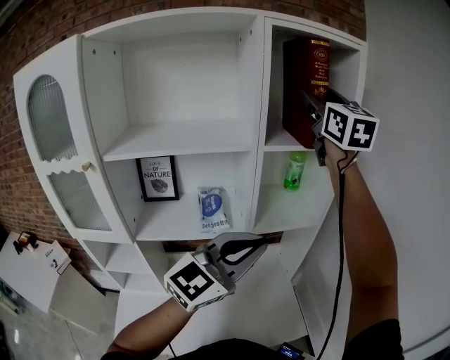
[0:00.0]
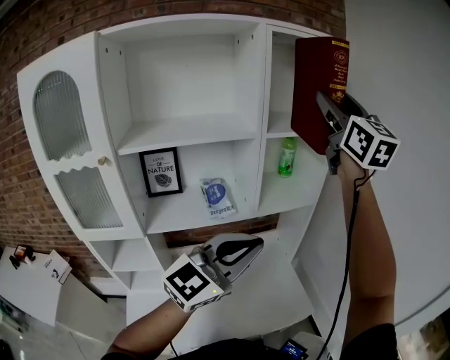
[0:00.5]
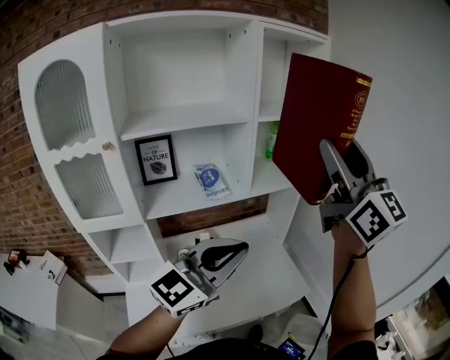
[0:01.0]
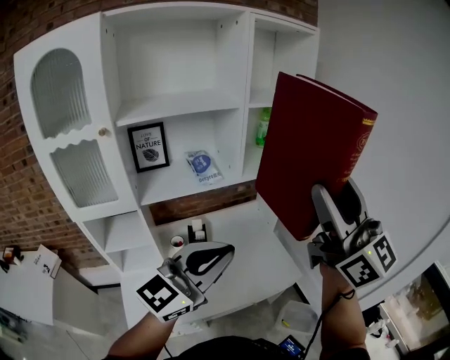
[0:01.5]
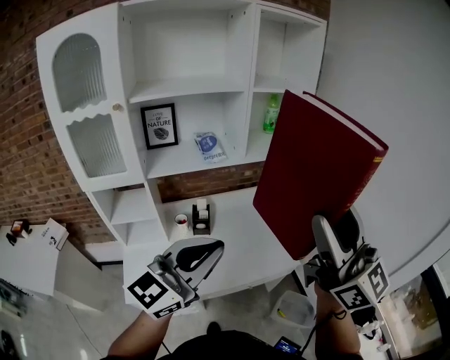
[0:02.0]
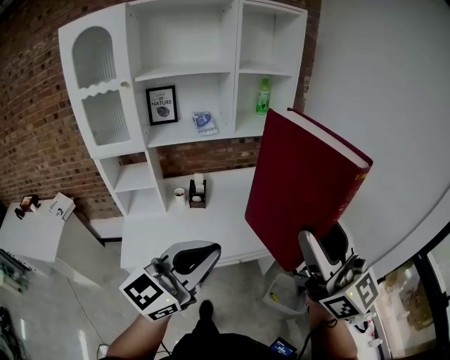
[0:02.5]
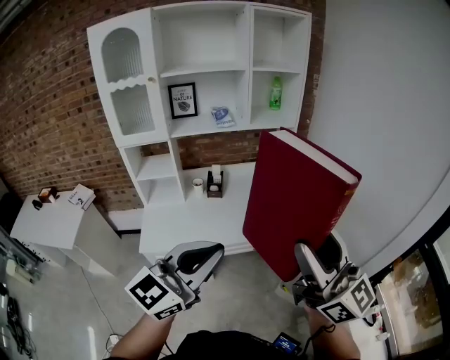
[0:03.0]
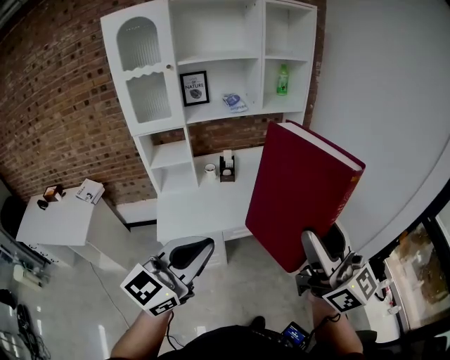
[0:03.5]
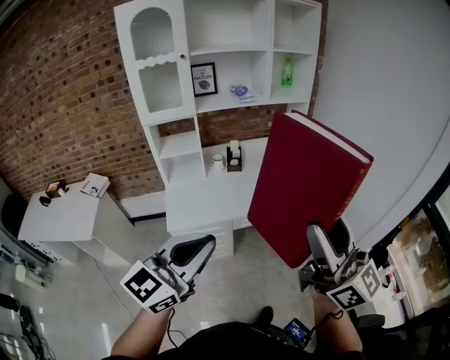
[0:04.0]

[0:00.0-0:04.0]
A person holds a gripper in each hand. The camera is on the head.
0:00.0 to 0:02.0: The right gripper moves backward, approximately 50 cm, and changes its angle by about 20 degrees. The left gripper moves backward, approximately 30 cm.
0:02.0 to 0:04.0: Both grippers travel together backward, about 40 cm.

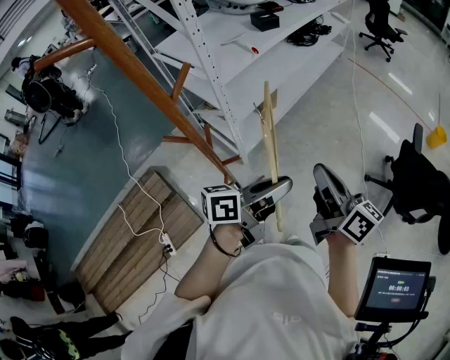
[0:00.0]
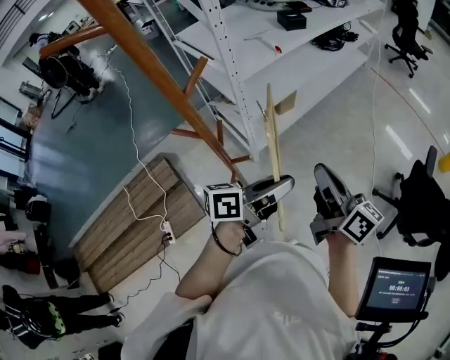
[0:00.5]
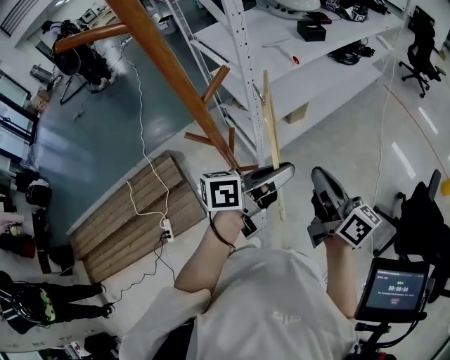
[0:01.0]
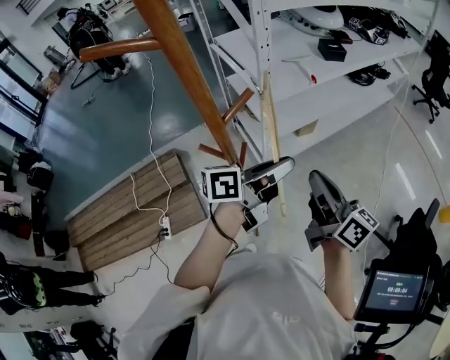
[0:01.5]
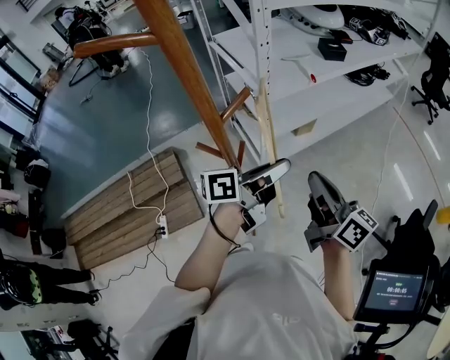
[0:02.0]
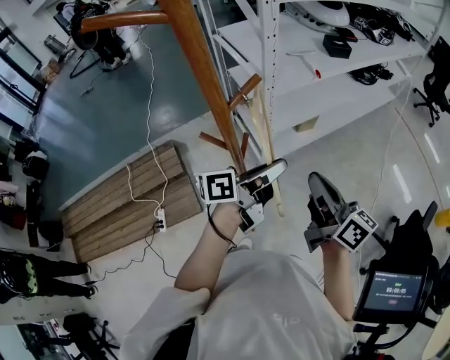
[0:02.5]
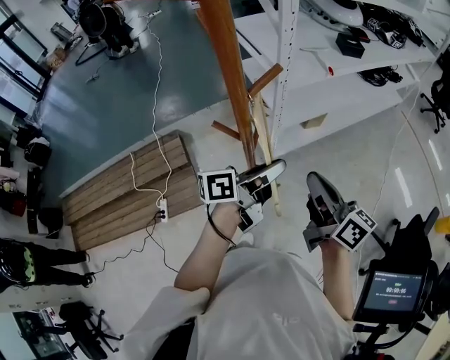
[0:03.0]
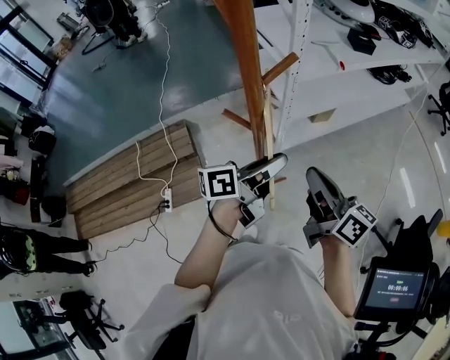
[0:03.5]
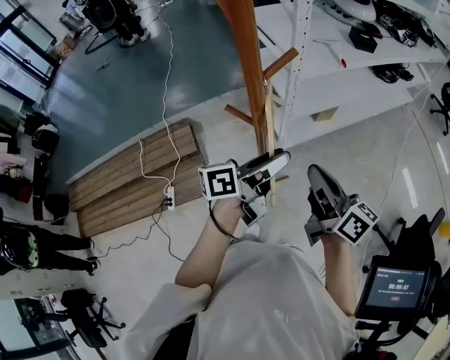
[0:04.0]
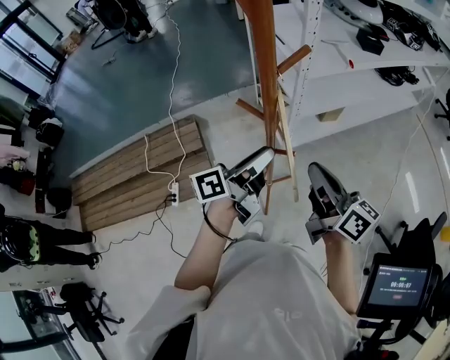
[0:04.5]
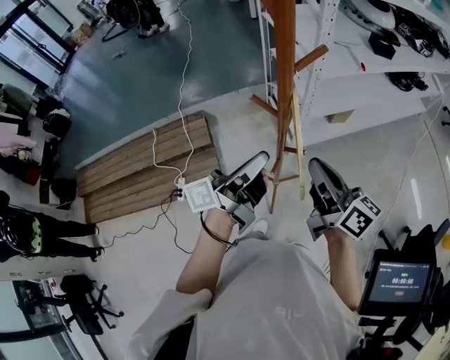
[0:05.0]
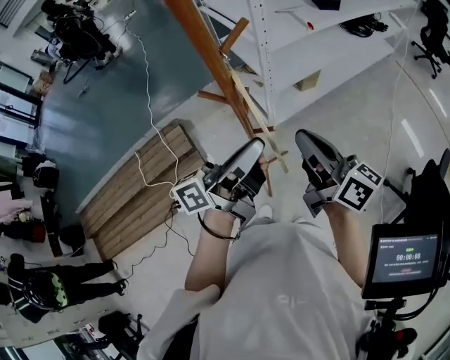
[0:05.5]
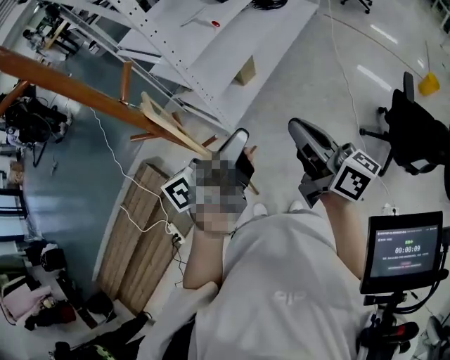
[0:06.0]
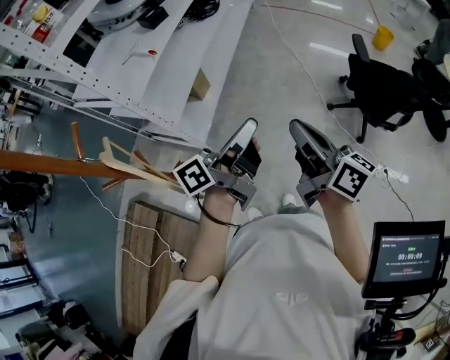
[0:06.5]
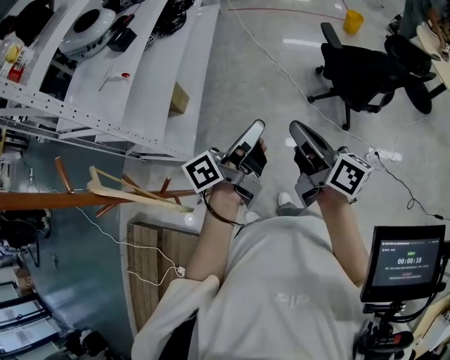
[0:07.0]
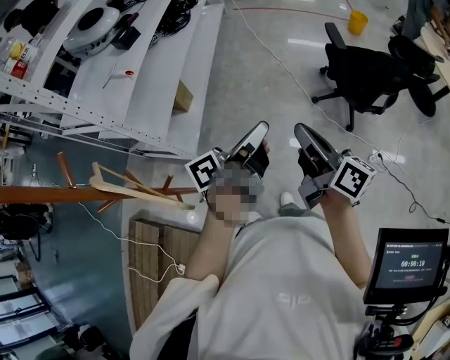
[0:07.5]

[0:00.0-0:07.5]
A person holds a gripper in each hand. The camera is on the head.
0:00.0 to 0:02.0: The right gripper heads to the left and forward, covering approximately 15 cm; the left gripper shifts about 15 cm forward and to the left, and swivels about 20 degrees.
0:02.0 to 0:04.0: The two grippers go some 10 cm to the left and backward. The left gripper opens its fingers.
0:04.0 to 0:05.5: The right gripper is displaced upward by roughly 5 cm. The left gripper heads upward and backward, covering about 15 cm, and closes.
0:05.5 to 0:07.5: The left gripper ends up approximately 35 cm from where it was, and turns by some 50 degrees. The right gripper shifts by roughly 30 cm, and rotates about 50 degrees.

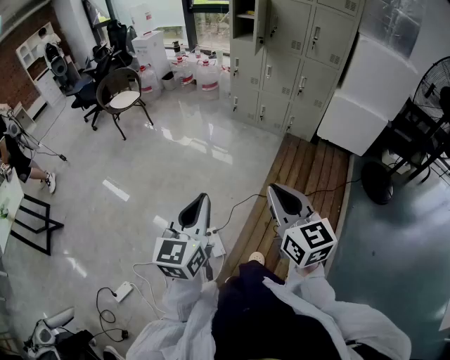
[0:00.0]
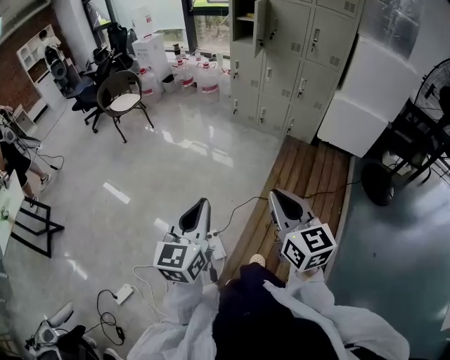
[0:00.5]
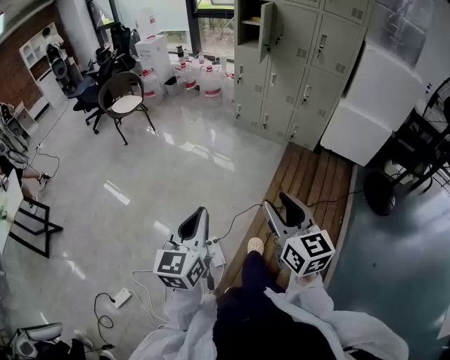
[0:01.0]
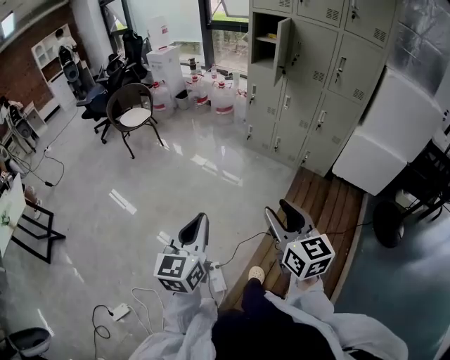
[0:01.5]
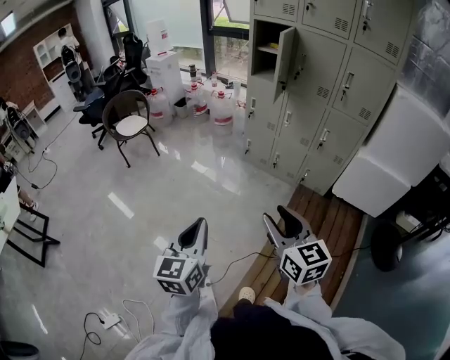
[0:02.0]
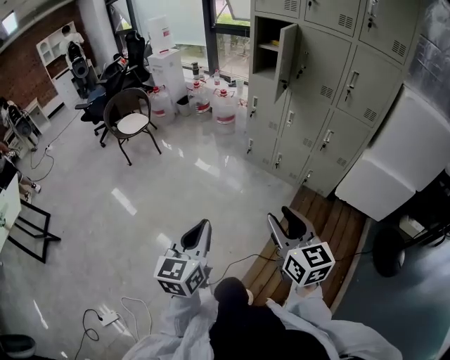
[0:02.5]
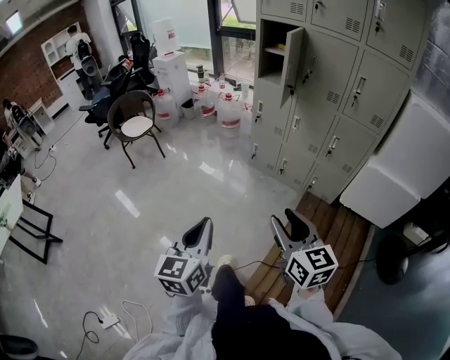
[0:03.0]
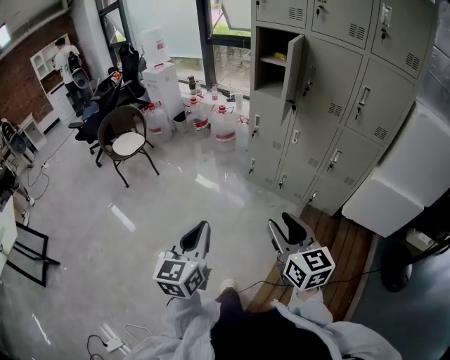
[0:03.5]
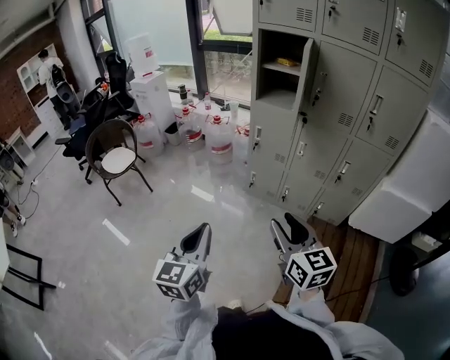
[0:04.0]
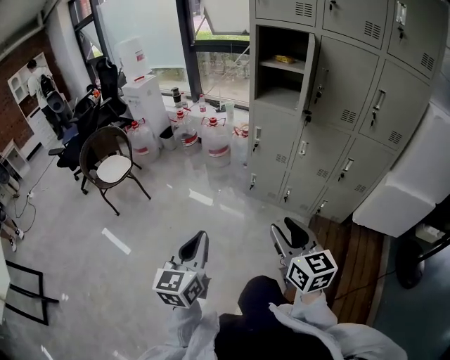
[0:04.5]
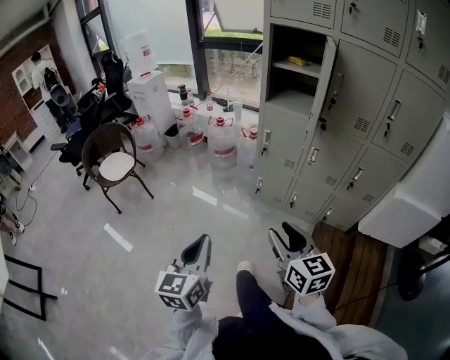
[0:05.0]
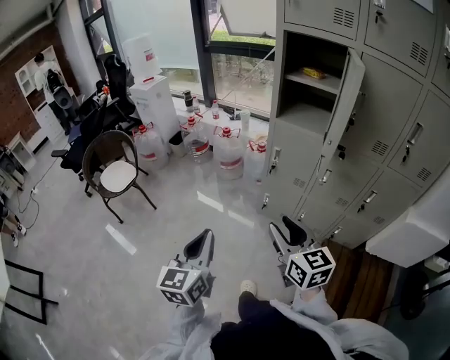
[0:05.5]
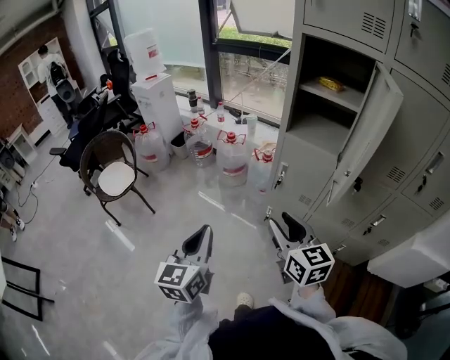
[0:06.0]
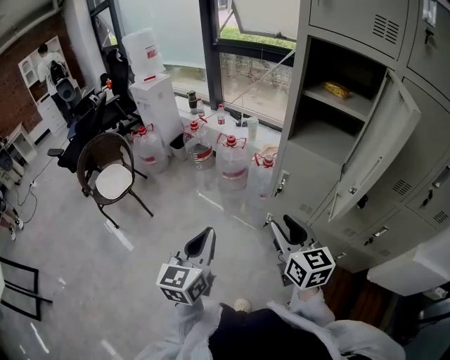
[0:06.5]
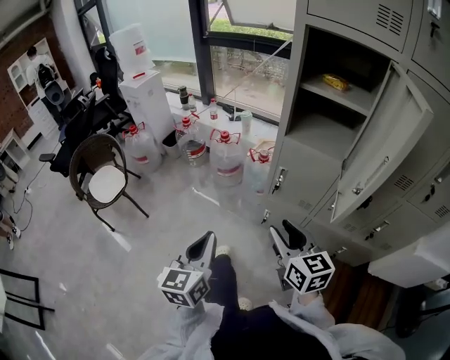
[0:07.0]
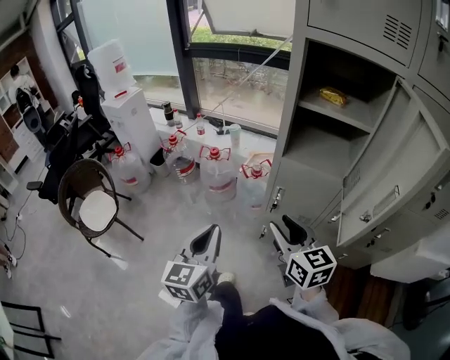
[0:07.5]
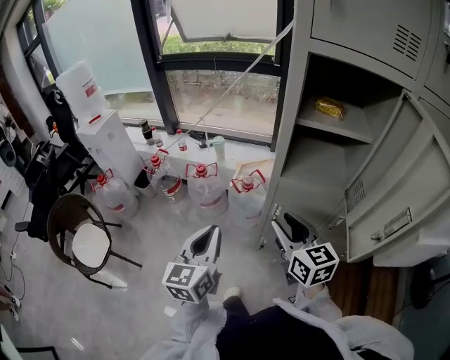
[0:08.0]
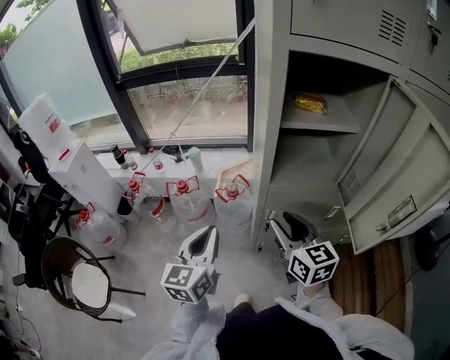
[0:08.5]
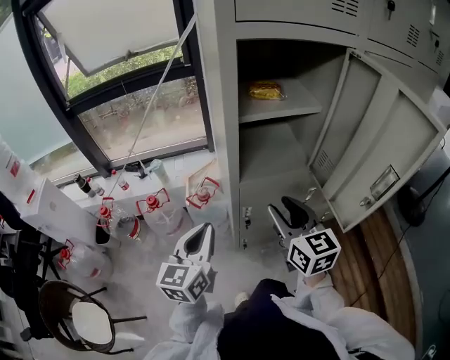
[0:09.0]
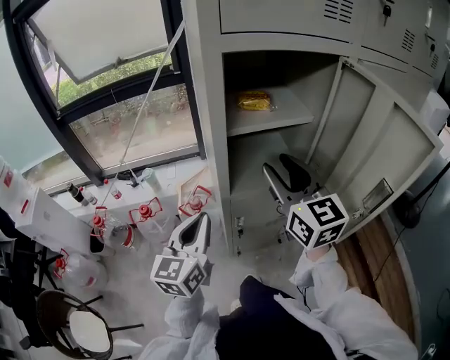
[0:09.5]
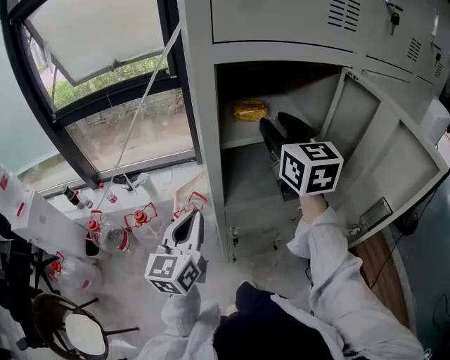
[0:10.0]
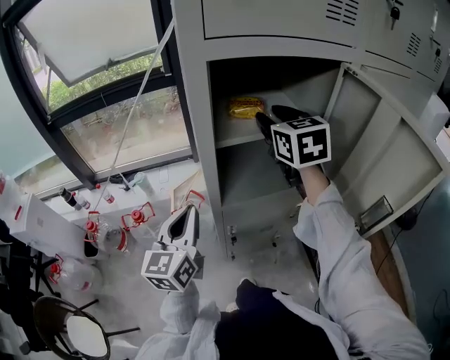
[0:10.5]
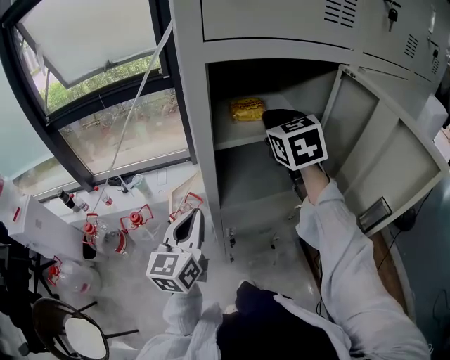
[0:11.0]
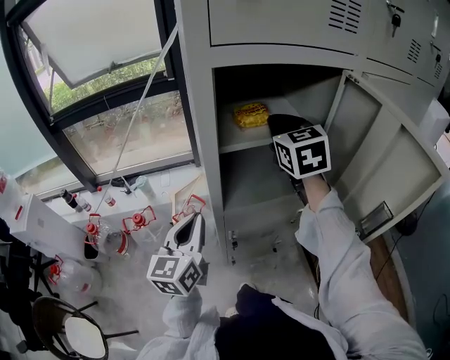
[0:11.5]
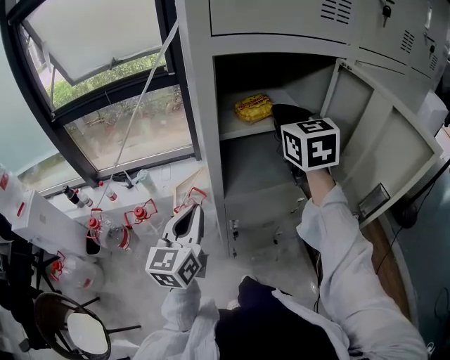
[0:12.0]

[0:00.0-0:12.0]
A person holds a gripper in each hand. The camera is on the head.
0:00.0 to 0:02.0: Both grippers travel together forward, roughly 30 cm. The right gripper opens.
0:02.0 to 0:04.0: The two grippers go about 30 cm forward.
0:04.0 to 0:06.0: Both grippers travel together forward, some 35 cm.
0:06.0 to 0:08.0: The two grippers go some 25 cm forward.
0:08.0 to 0:10.0: The left gripper shifts by approximately 20 cm, and swivels roughly 30 degrees, while the right gripper changes place by about 35 cm, and turns by about 40 degrees.
0:10.0 to 0:12.0: The right gripper closes up.

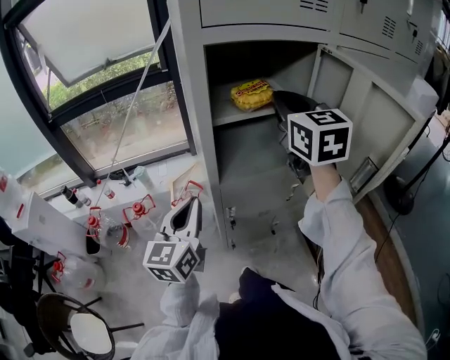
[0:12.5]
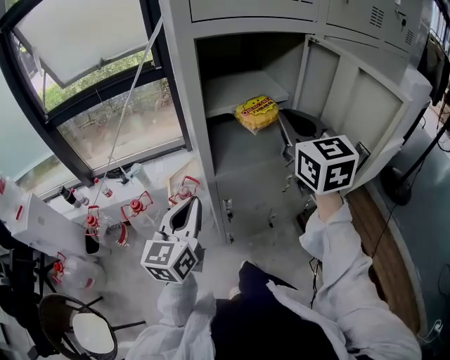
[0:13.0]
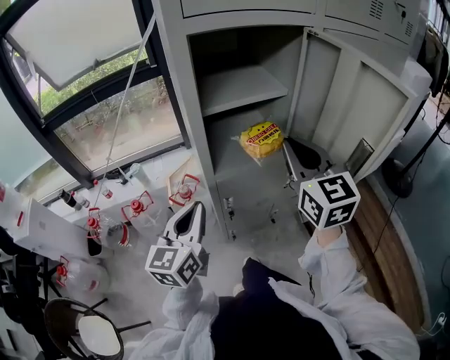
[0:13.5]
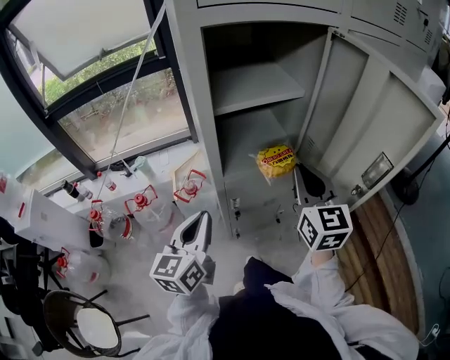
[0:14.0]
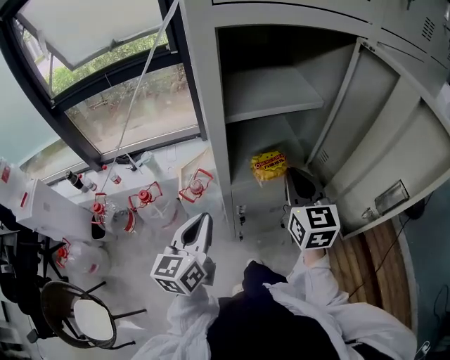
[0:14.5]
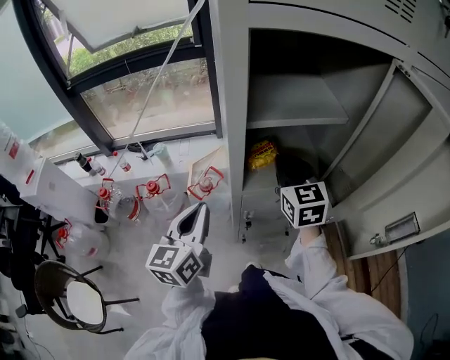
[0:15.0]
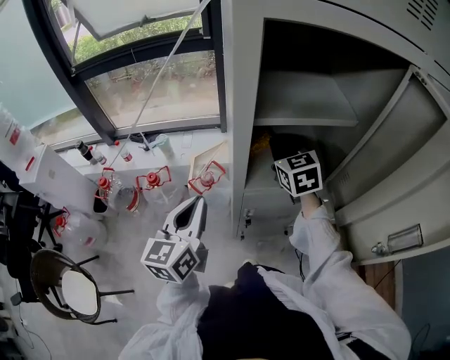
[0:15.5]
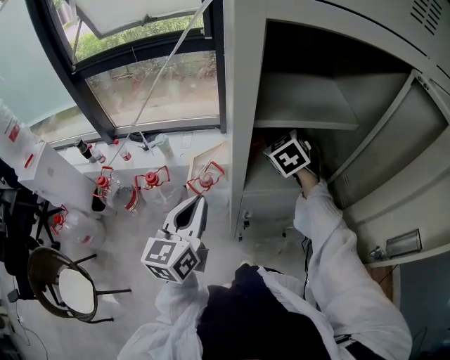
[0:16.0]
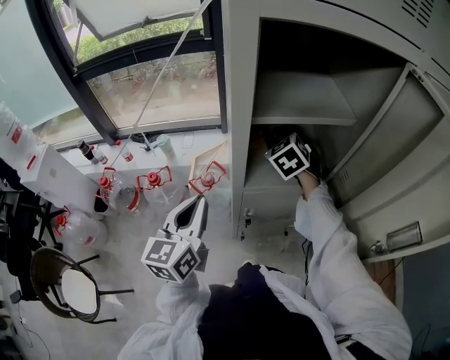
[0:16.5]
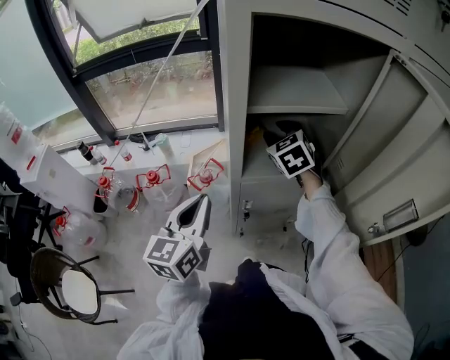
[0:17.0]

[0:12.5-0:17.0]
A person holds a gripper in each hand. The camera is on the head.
0:12.5 to 0:14.5: The left gripper travels downward by roughly 5 cm. The right gripper heads downward, covering approximately 20 cm.
0:14.5 to 0:17.0: The right gripper heads forward and to the left, covering some 15 cm, rotates roughly 40 degrees, and opens up.
